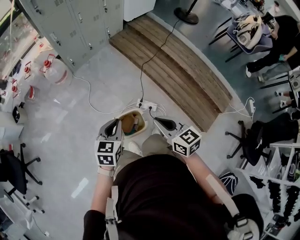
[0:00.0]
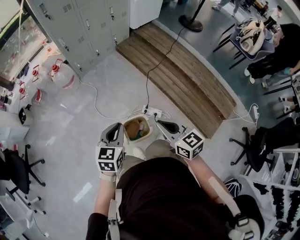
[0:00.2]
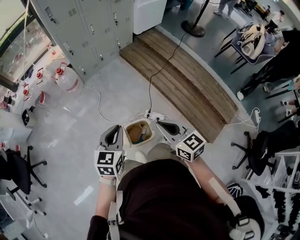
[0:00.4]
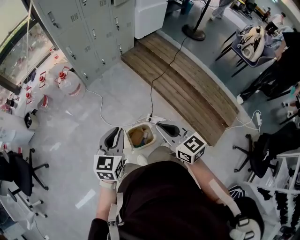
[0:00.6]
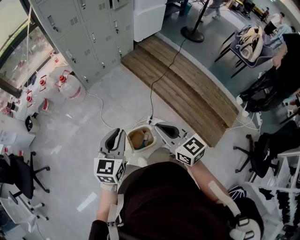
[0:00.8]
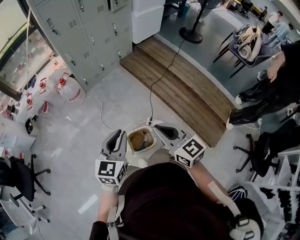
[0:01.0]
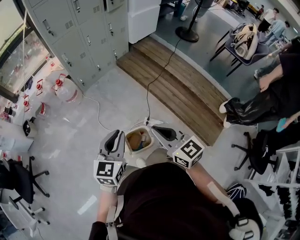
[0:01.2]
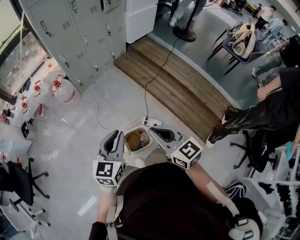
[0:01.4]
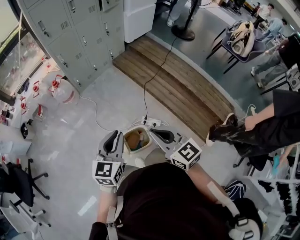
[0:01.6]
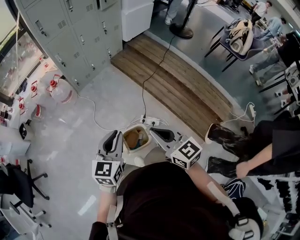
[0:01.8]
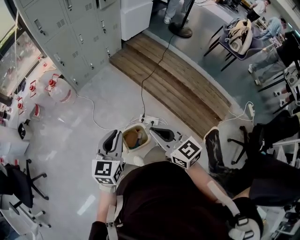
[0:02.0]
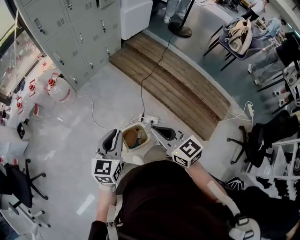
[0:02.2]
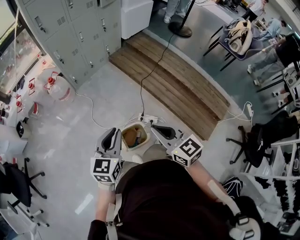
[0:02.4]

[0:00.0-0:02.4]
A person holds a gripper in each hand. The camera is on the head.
0:00.0 to 0:01.2: Both grippers move upward, approximately 15 cm.
0:01.2 to 0:02.4: There are only small adjustments of the grippers.

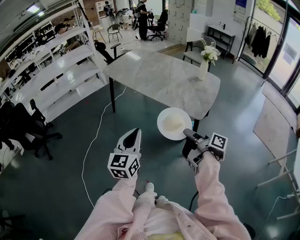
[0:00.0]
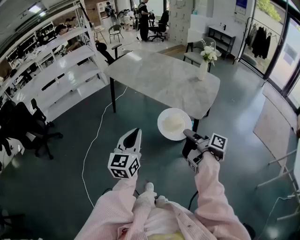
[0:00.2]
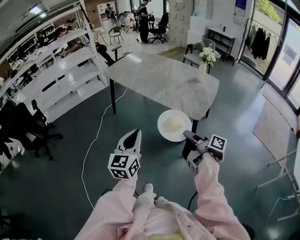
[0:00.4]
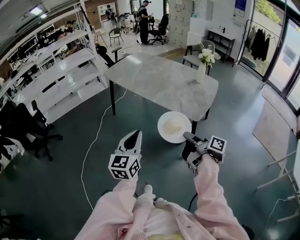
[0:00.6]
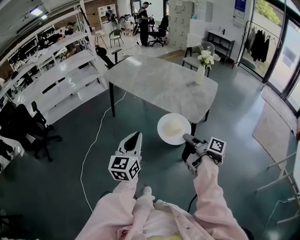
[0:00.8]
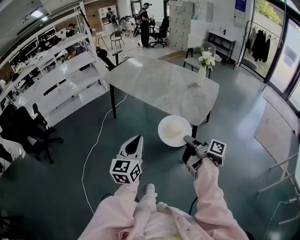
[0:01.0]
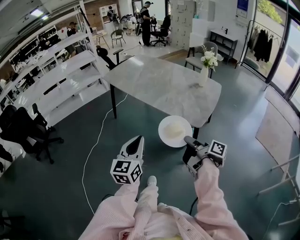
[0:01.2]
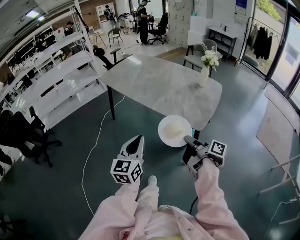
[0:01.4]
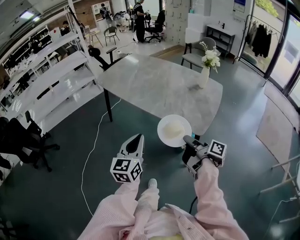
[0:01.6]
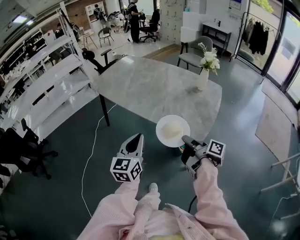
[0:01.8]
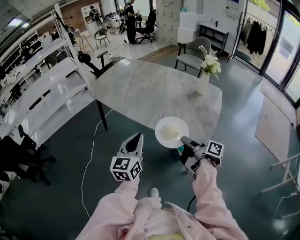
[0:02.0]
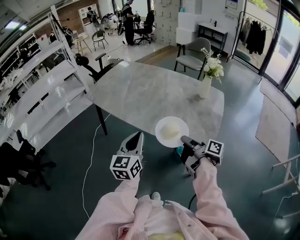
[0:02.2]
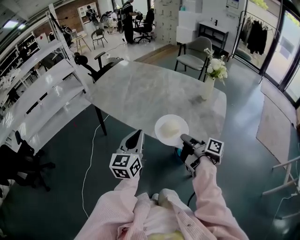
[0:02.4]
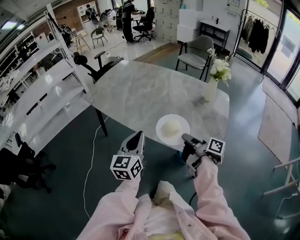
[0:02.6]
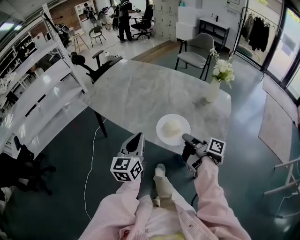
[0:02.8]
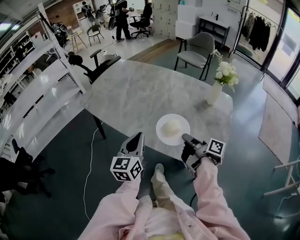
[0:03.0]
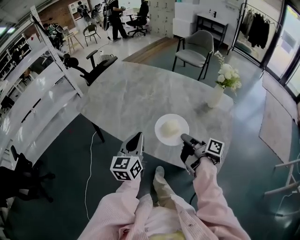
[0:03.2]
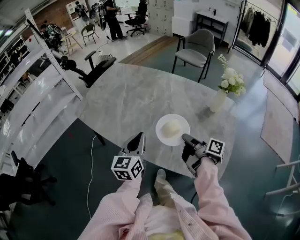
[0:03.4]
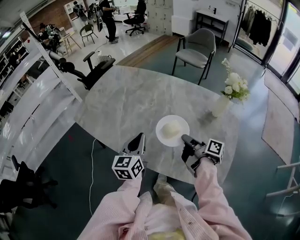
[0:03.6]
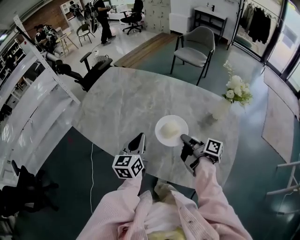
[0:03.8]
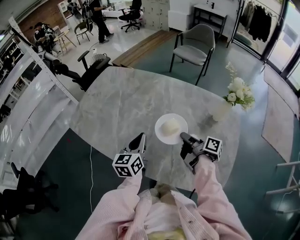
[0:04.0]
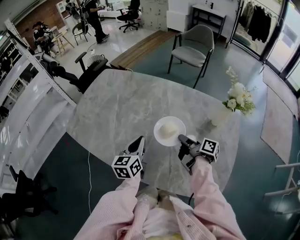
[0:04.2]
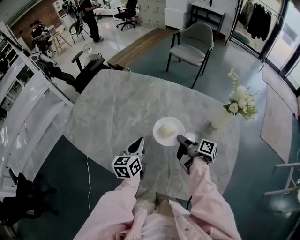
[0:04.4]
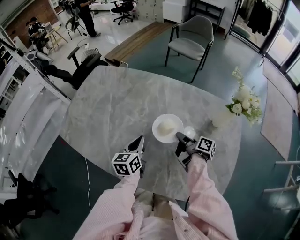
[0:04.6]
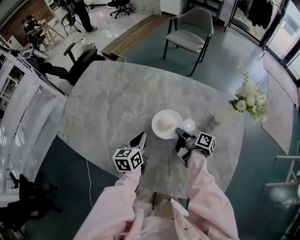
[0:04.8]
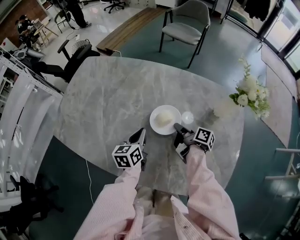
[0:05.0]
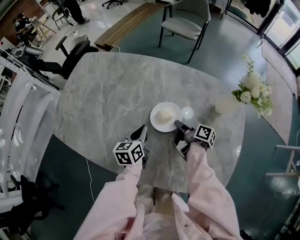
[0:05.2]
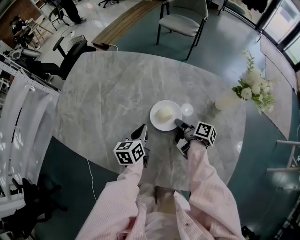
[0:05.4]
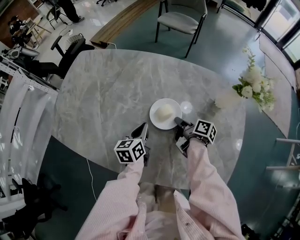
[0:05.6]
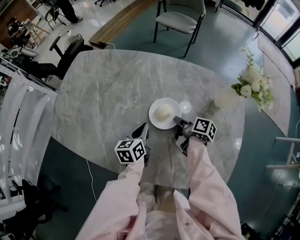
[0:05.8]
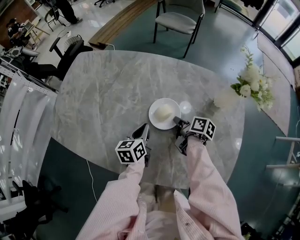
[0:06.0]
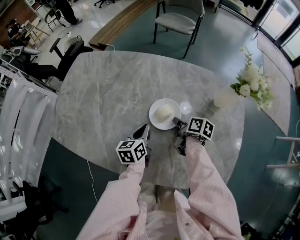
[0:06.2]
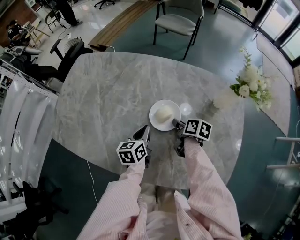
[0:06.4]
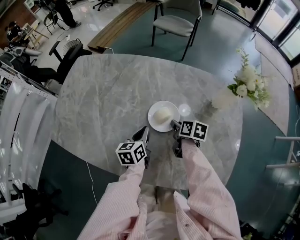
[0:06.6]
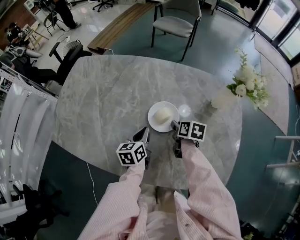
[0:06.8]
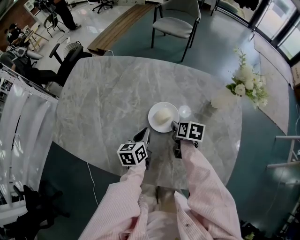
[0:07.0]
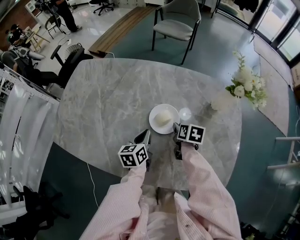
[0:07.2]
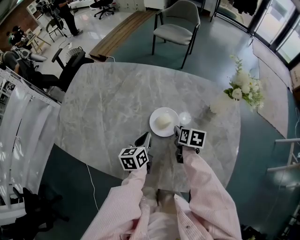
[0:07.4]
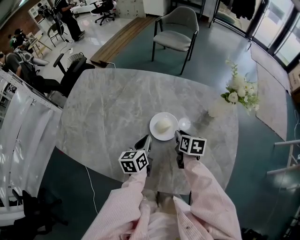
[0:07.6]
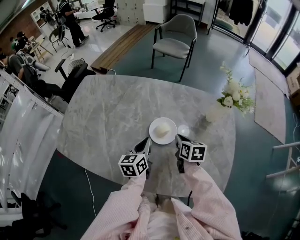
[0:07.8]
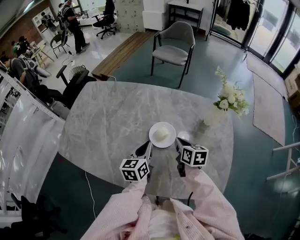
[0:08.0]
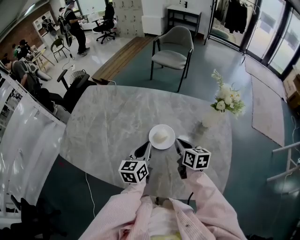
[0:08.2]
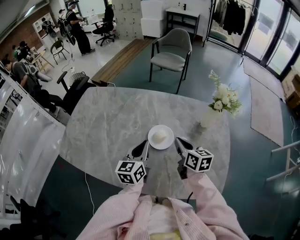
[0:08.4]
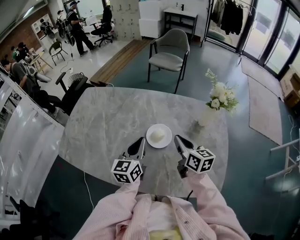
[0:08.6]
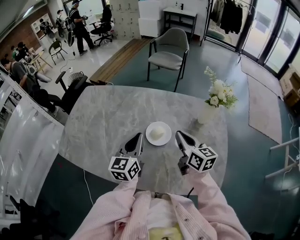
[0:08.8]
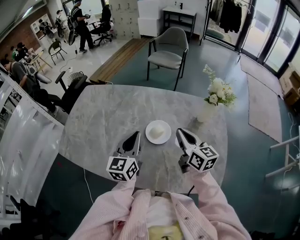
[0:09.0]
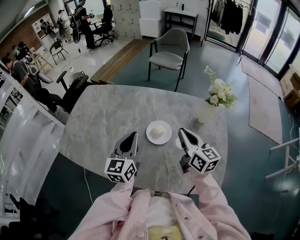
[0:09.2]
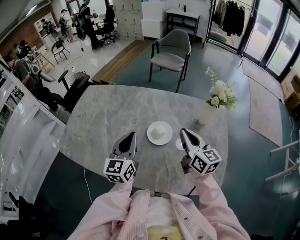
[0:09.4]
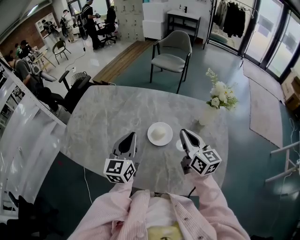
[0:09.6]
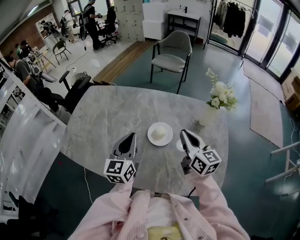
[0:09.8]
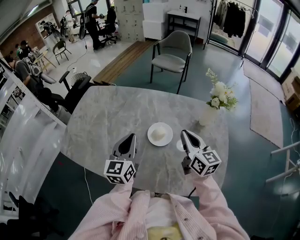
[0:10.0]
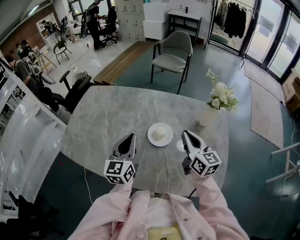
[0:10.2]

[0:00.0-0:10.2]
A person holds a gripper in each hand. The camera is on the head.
0:00.0 to 0:01.4: Both grippers travel together forward, about 5 cm.
0:01.4 to 0:03.0: The grippers both shift forward by about 35 cm.
0:03.0 to 0:04.4: Both grippers travel together forward, some 25 cm.
0:04.4 to 0:05.8: Both grippers travel together downward, approximately 10 cm.
0:05.8 to 0:07.2: The right gripper rotates about 40 degrees.
0:07.2 to 0:08.8: The grippers both shift upward by roughly 20 cm. The right gripper angles its fingers upward, by roughly 40 degrees, and closes, while the left gripper changes its angle by some 30 degrees.
0:08.8 to 0:10.2: The grippers move only a little.

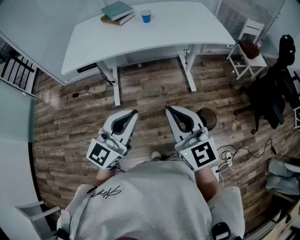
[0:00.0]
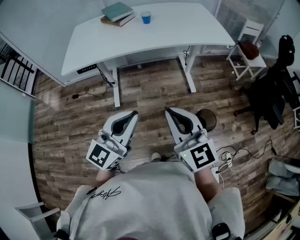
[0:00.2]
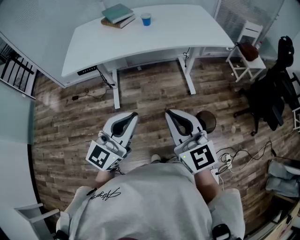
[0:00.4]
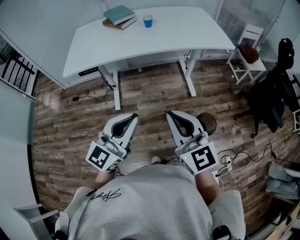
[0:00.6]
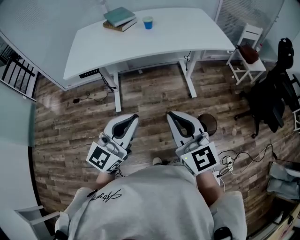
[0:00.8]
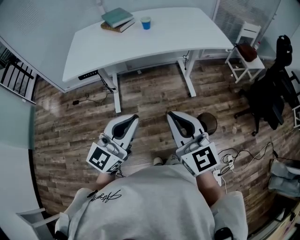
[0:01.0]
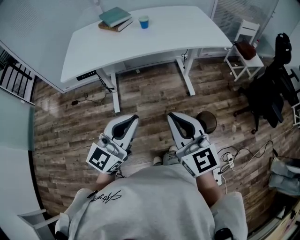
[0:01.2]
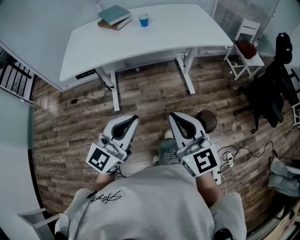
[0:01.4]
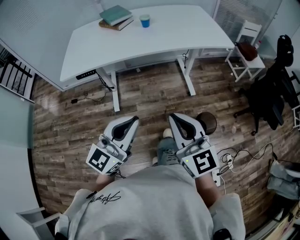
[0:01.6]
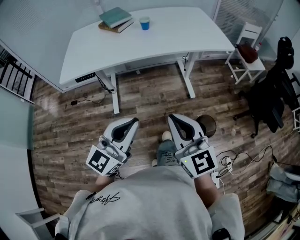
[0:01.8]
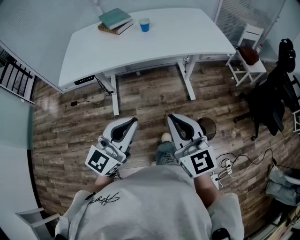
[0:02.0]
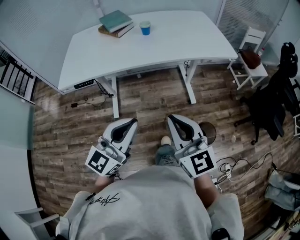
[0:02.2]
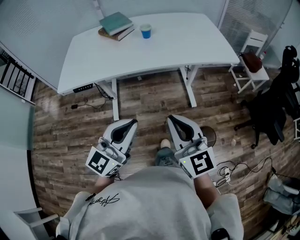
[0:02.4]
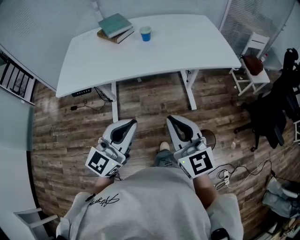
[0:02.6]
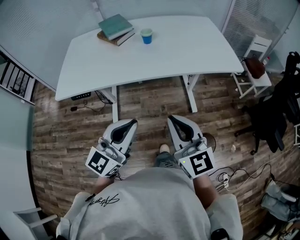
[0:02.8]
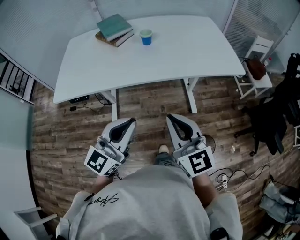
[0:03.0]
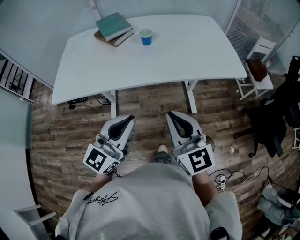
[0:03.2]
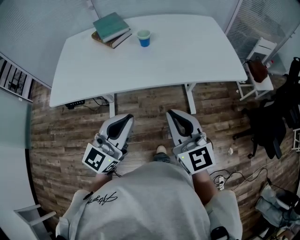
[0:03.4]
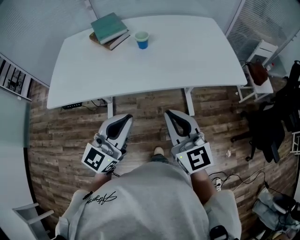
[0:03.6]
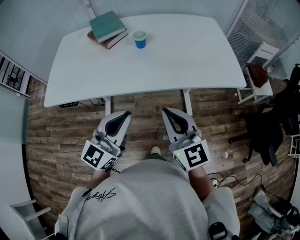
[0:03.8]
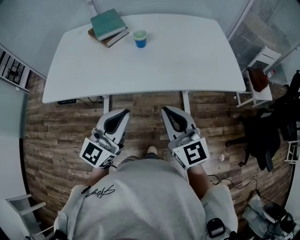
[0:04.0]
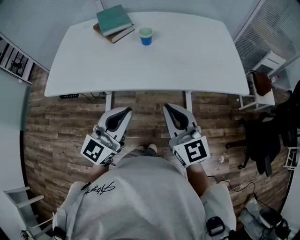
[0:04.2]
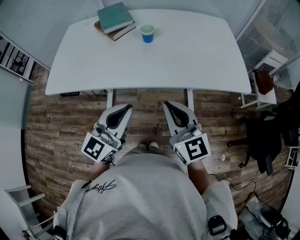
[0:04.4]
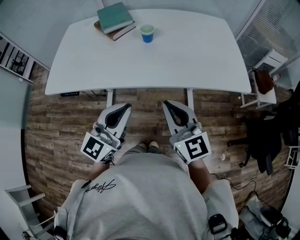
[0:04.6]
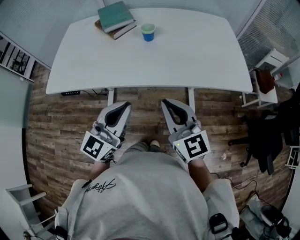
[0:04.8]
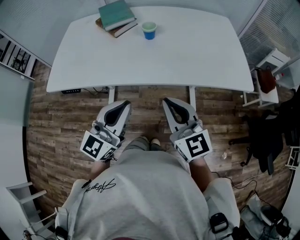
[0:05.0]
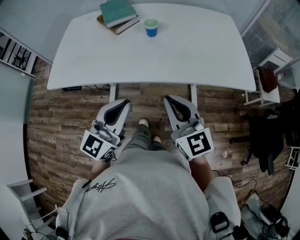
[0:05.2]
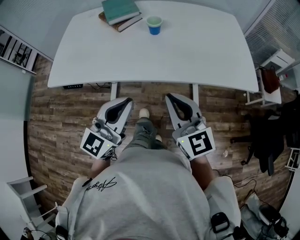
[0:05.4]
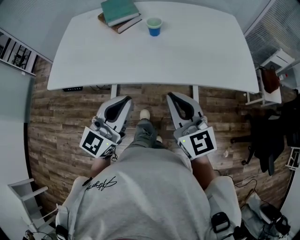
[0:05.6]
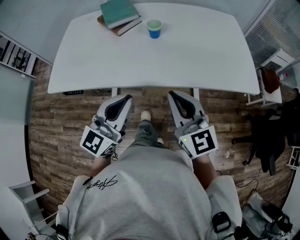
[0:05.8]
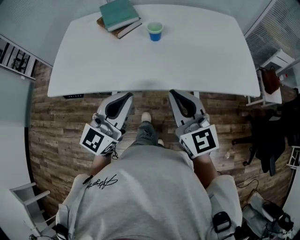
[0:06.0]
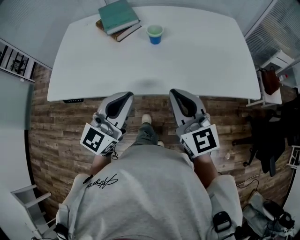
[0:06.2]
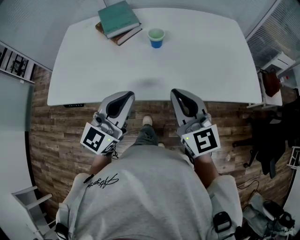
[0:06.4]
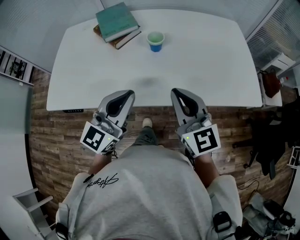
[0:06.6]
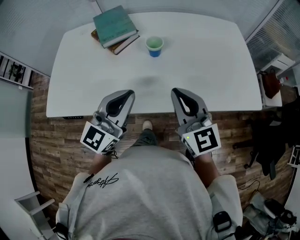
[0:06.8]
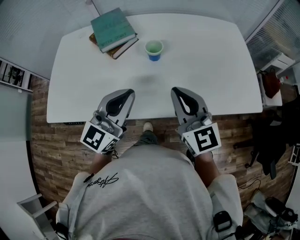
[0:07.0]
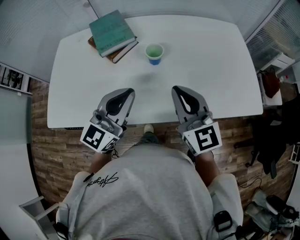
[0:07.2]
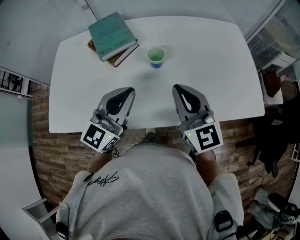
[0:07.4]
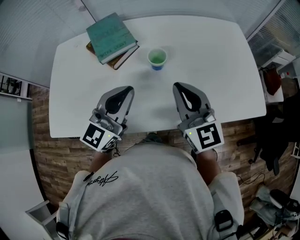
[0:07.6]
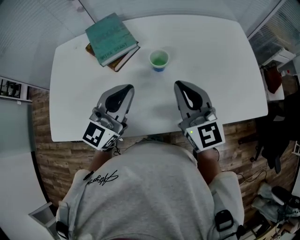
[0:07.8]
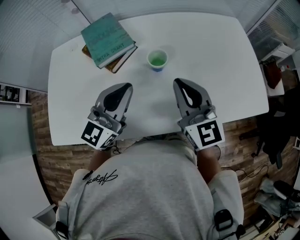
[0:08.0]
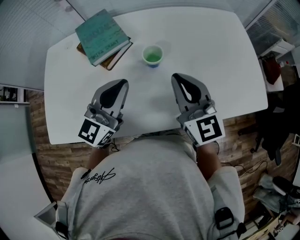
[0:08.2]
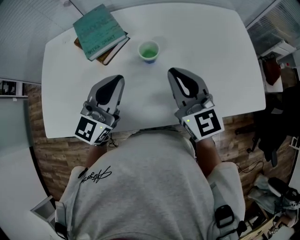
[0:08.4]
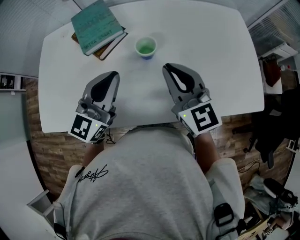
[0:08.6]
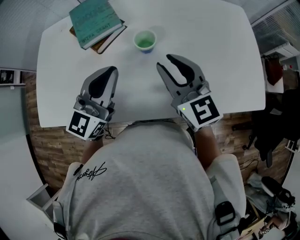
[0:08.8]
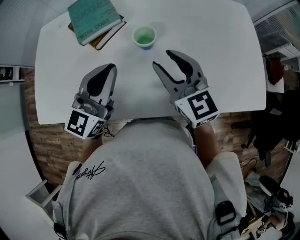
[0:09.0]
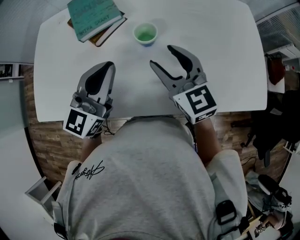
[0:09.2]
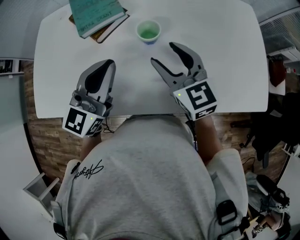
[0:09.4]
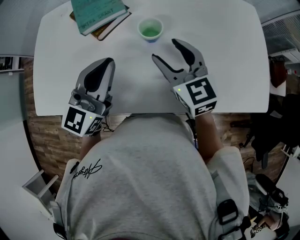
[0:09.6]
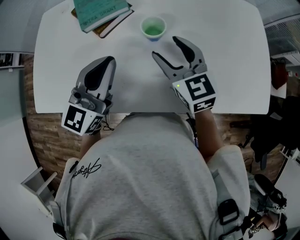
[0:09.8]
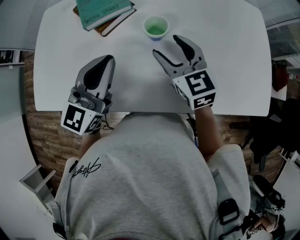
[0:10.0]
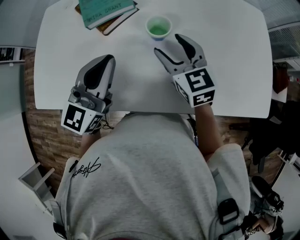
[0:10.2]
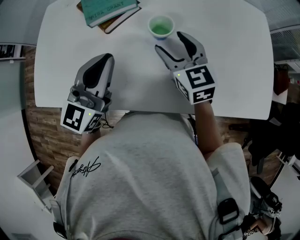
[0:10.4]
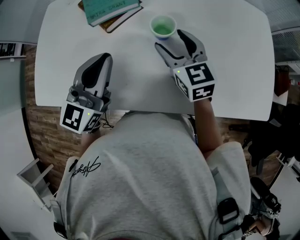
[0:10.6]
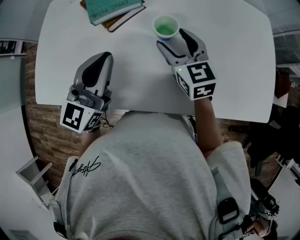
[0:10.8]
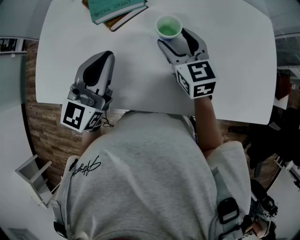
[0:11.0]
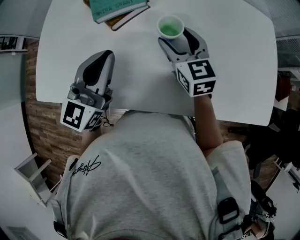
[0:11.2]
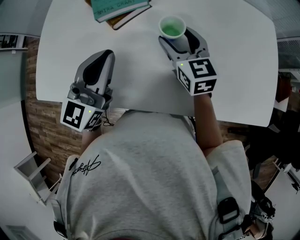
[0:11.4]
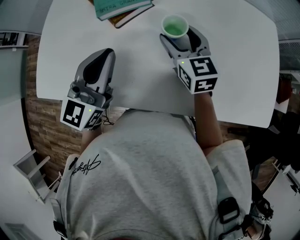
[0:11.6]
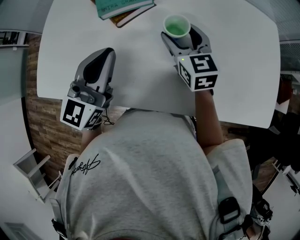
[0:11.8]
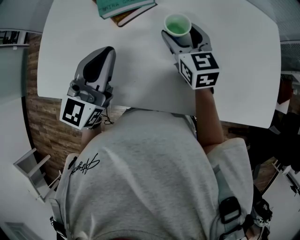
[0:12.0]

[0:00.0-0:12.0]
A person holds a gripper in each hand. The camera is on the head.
0:00.0 to 0:01.6: The grippers make only small movements.
0:01.6 to 0:03.0: The two grippers go about 20 cm forward.
0:03.0 to 0:04.4: The two grippers go roughly 10 cm forward.
0:04.4 to 0:06.0: Both grippers move forward, approximately 5 cm.
0:06.0 to 0:07.6: The grippers both shift forward by about 20 cm.
0:07.6 to 0:09.0: The right gripper shifts by about 5 cm, and opens.
0:09.0 to 0:10.4: The right gripper travels downward and forward by some 10 cm, and opens up.
0:10.4 to 0:12.0: The right gripper moves some 5 cm.
